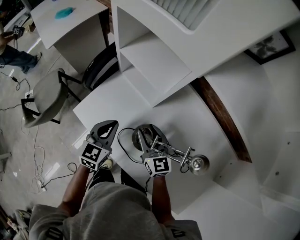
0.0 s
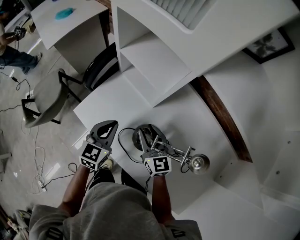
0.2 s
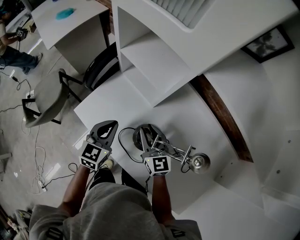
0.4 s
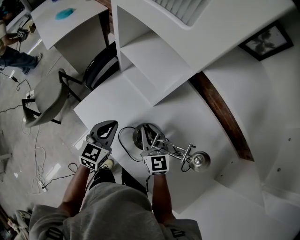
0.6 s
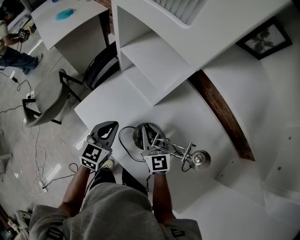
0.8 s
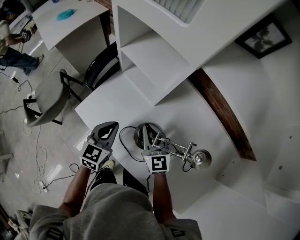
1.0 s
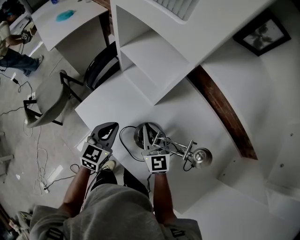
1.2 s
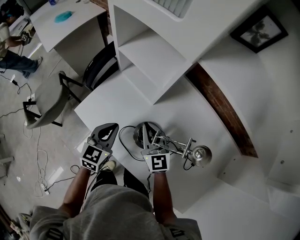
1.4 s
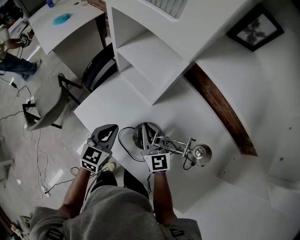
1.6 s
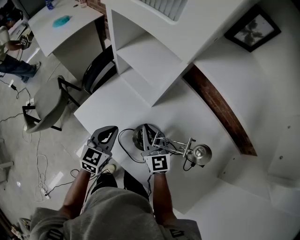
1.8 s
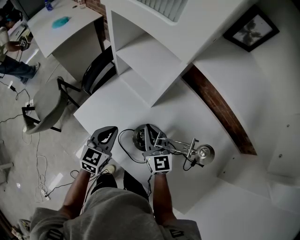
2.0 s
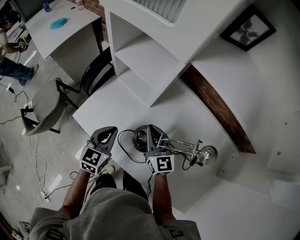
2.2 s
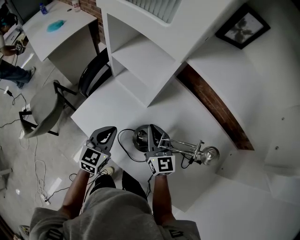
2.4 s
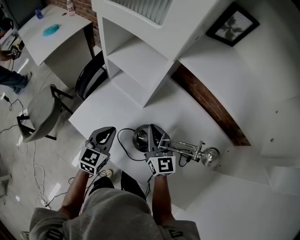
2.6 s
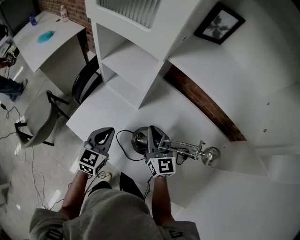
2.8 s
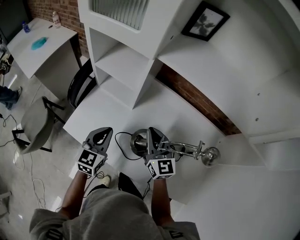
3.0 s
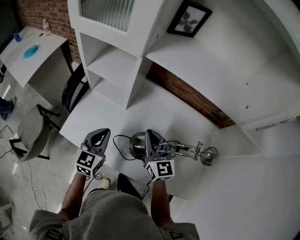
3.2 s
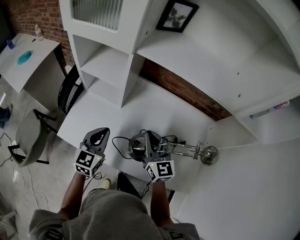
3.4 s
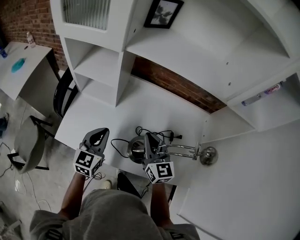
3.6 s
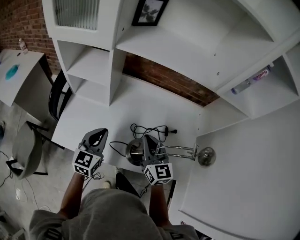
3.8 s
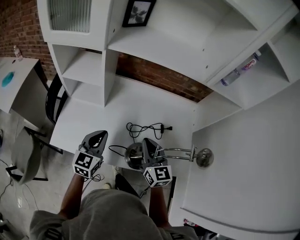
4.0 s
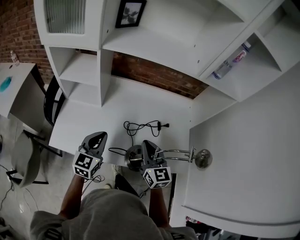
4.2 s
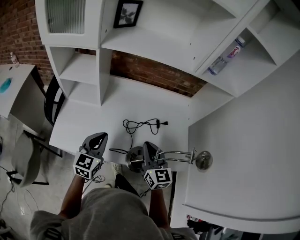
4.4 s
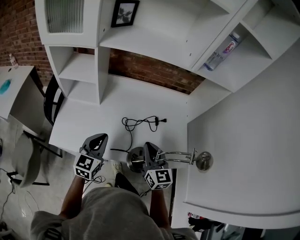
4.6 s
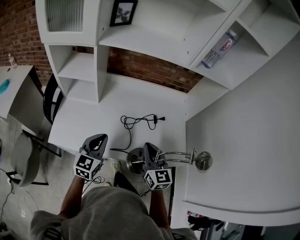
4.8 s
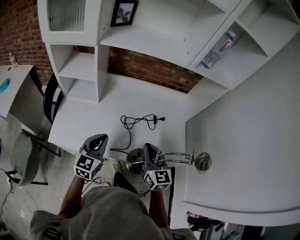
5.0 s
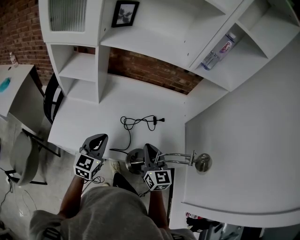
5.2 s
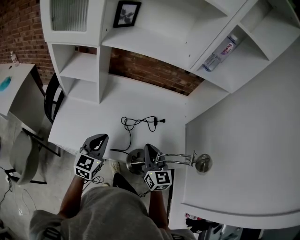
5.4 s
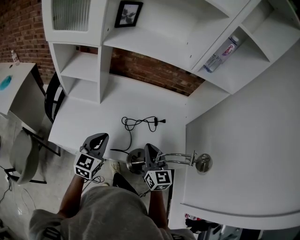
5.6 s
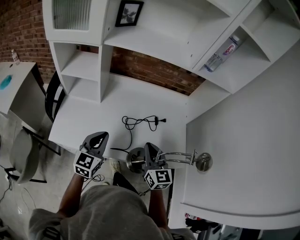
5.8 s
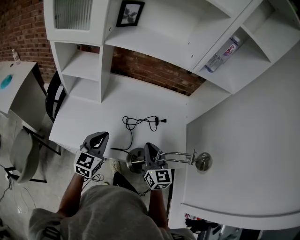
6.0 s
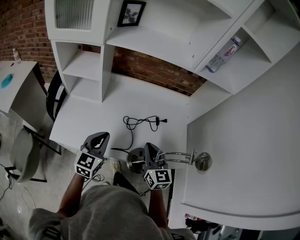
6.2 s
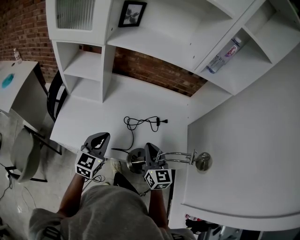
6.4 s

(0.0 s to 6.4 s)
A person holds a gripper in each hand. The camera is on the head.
0.0 s - 1.6 s: The right gripper closes up.
1.6 s - 3.2 s: The left gripper shifts approximately 5 cm upward, while the right gripper is displaced to the right, upward and backward by some 15 cm, and changes its angle by some 20 degrees.
3.2 s - 4.8 s: The left gripper goes some 15 cm backward and to the right, and changes its angle by approximately 20 degrees; the right gripper moves backward and to the right, roughly 25 cm, and changes its angle by roughly 20 degrees.
4.8 s - 6.4 s: Both grippers stay put.

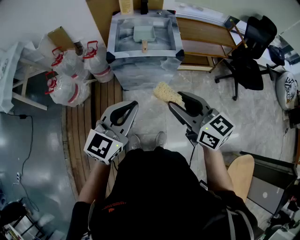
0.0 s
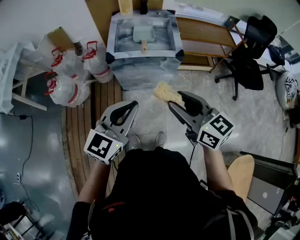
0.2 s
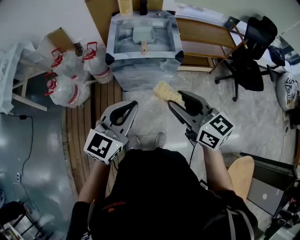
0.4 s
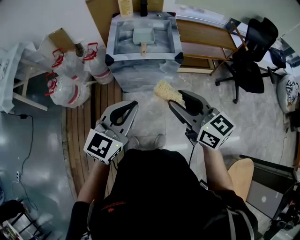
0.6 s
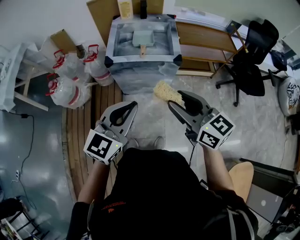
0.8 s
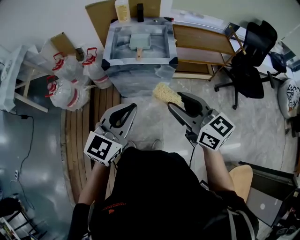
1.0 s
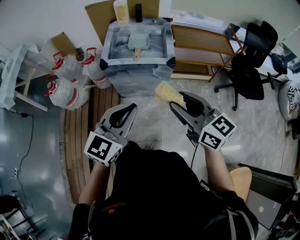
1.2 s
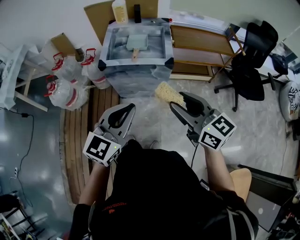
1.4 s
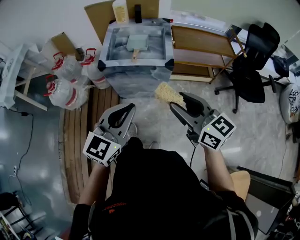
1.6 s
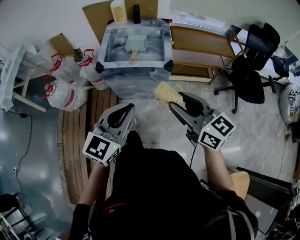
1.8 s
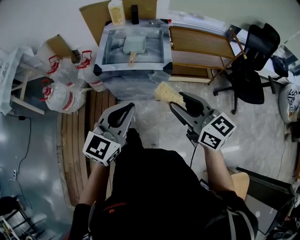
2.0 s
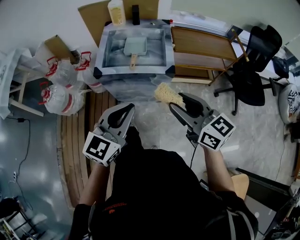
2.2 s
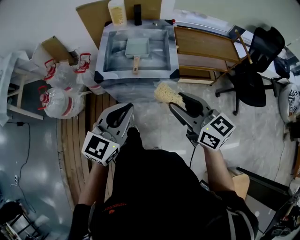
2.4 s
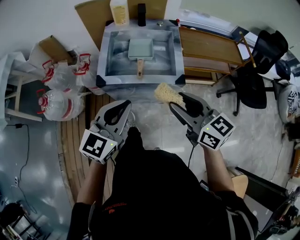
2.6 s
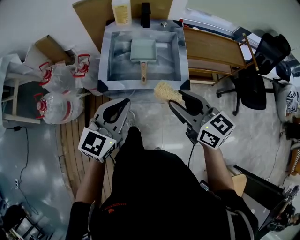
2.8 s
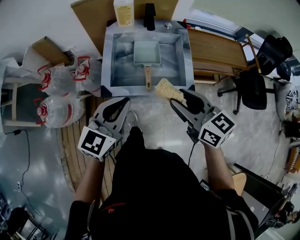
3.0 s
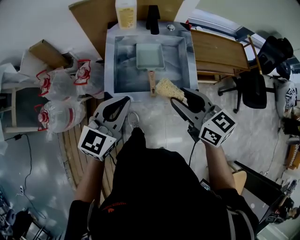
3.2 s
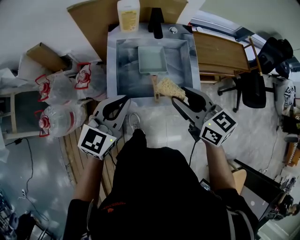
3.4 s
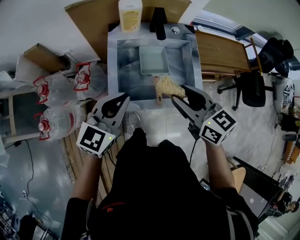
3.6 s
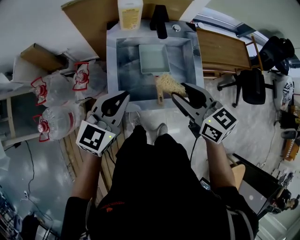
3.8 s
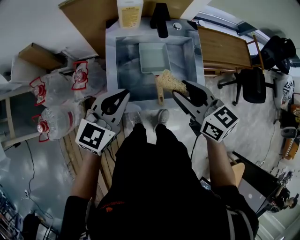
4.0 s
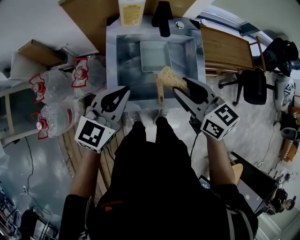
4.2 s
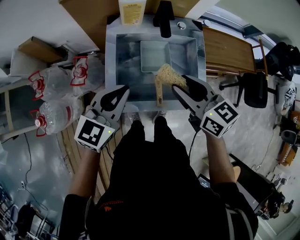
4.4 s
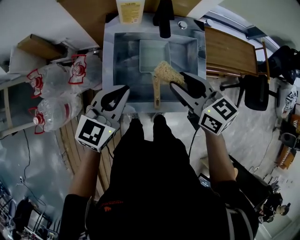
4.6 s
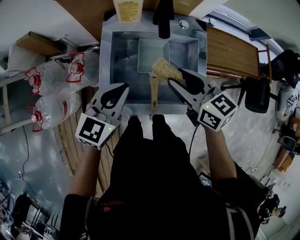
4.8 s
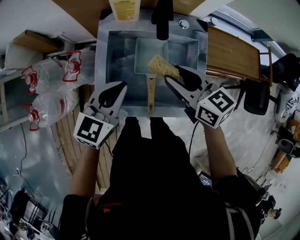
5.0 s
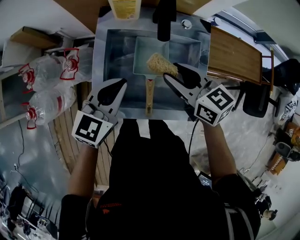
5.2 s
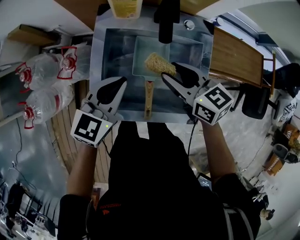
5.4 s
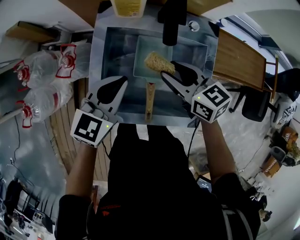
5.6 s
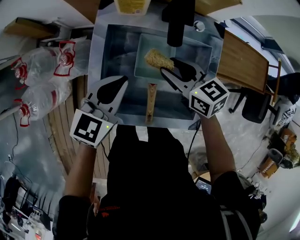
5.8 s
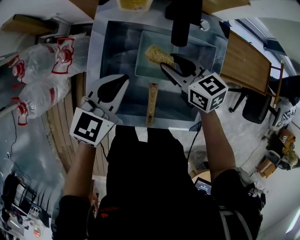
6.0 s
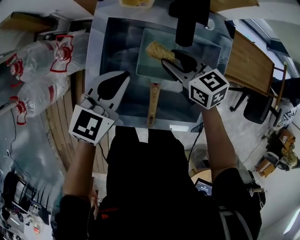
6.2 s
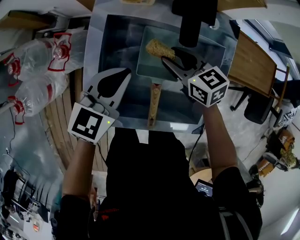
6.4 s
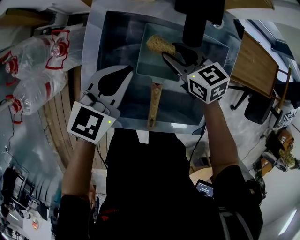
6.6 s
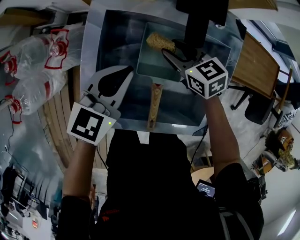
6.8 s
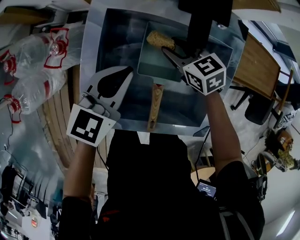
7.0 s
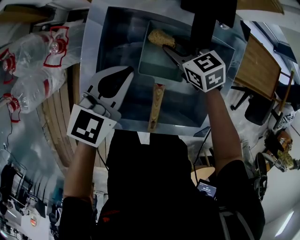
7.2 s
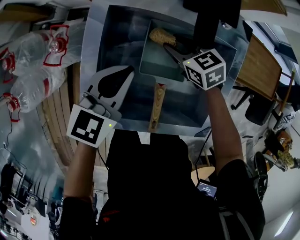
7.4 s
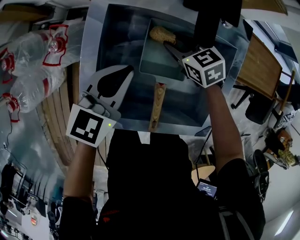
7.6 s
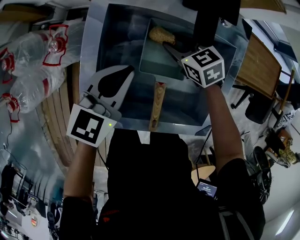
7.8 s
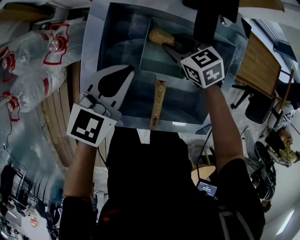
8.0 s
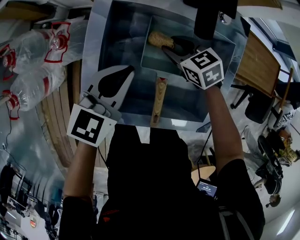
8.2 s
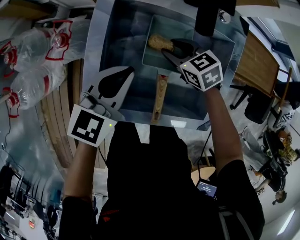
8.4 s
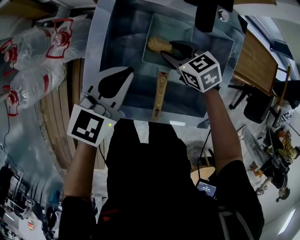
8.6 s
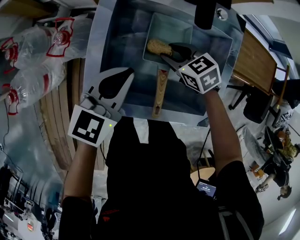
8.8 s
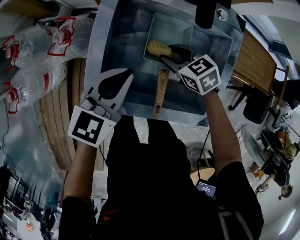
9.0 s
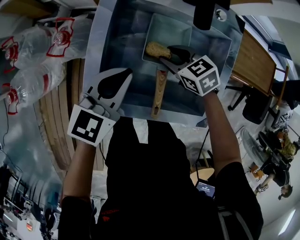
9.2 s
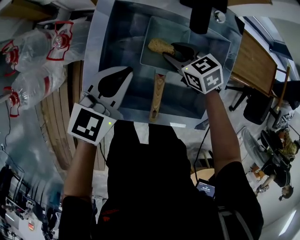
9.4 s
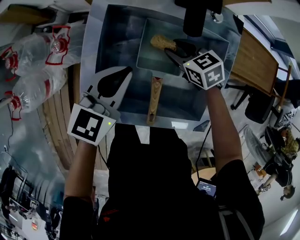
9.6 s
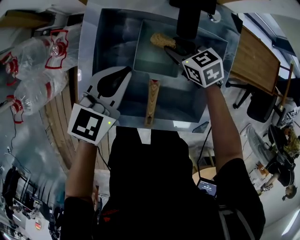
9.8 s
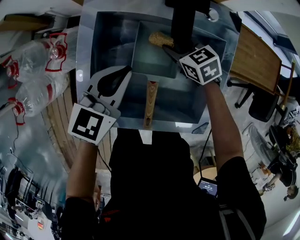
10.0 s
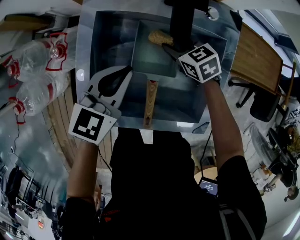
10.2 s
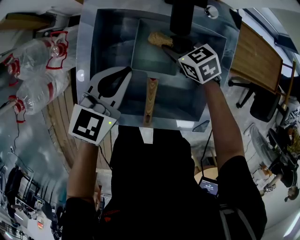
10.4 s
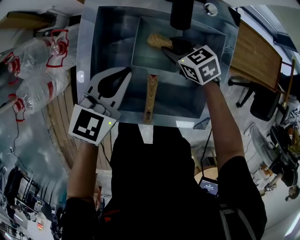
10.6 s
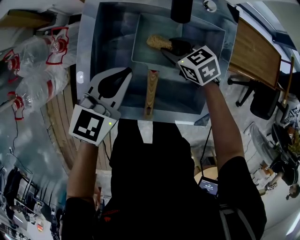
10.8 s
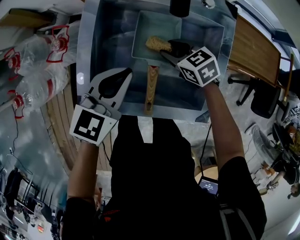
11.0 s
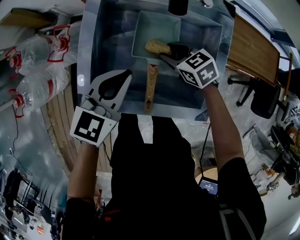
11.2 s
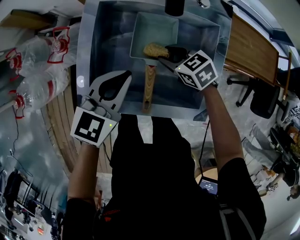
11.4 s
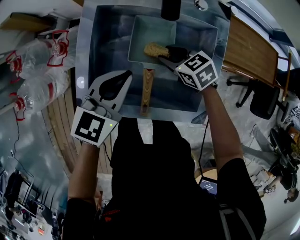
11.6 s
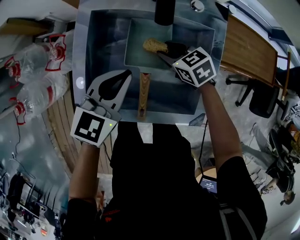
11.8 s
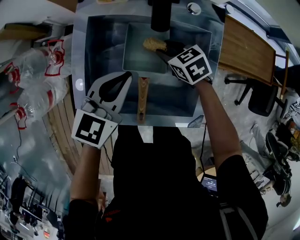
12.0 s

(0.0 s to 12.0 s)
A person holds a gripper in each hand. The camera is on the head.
0.0 s - 1.6 s: Both grippers travel together to the right, roughly 10 cm.
1.6 s - 3.0 s: The grippers both shift forward by about 30 cm.
3.0 s - 4.4 s: The grippers both shift forward by approximately 15 cm.
4.4 s - 6.0 s: The right gripper moves downward and forward, some 25 cm. The left gripper shifts about 15 cm downward and forward.
6.0 s - 7.6 s: The right gripper goes about 10 cm downward. Meanwhile the left gripper travels downward by approximately 5 cm.
7.6 s - 9.0 s: Both grippers move backward, some 5 cm.
9.0 s - 10.4 s: The right gripper heads to the right and forward, covering about 10 cm, while the left gripper shifts approximately 5 cm to the right.
10.4 s - 12.0 s: The right gripper goes backward and returns, some 10 cm each way.

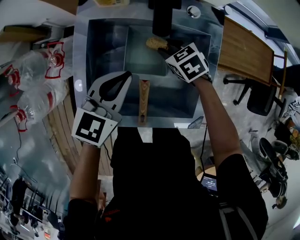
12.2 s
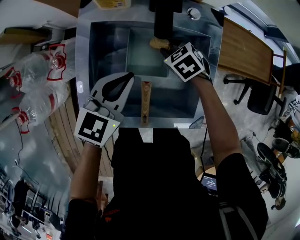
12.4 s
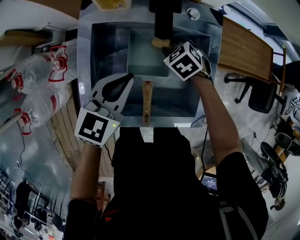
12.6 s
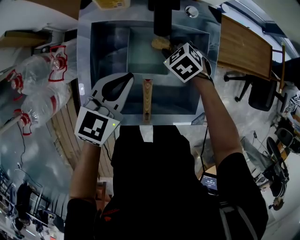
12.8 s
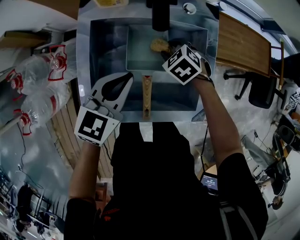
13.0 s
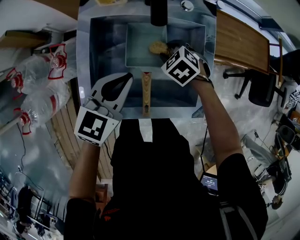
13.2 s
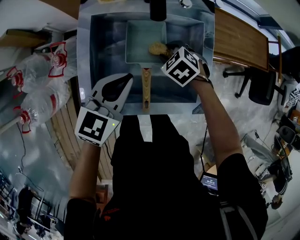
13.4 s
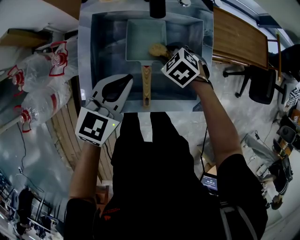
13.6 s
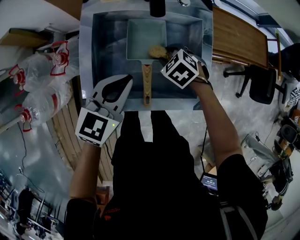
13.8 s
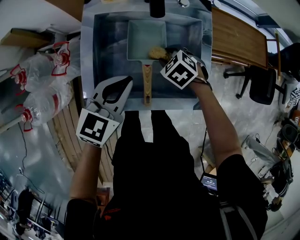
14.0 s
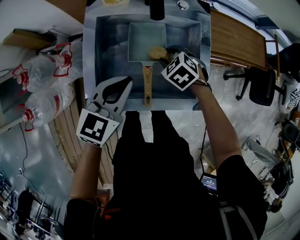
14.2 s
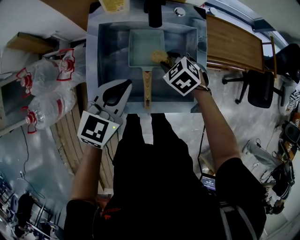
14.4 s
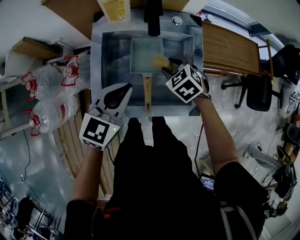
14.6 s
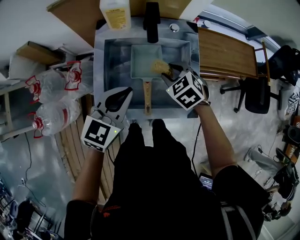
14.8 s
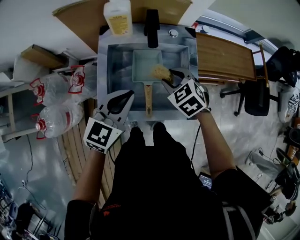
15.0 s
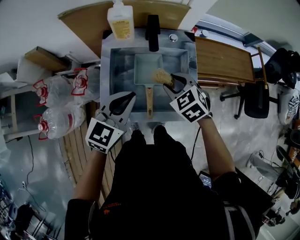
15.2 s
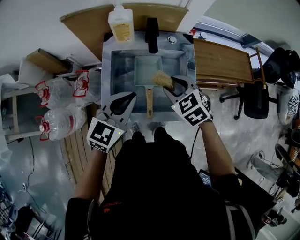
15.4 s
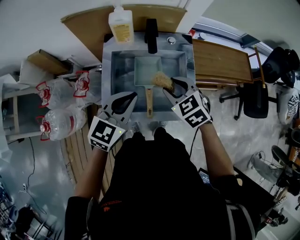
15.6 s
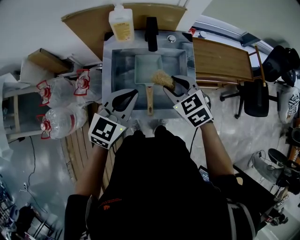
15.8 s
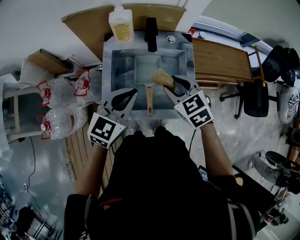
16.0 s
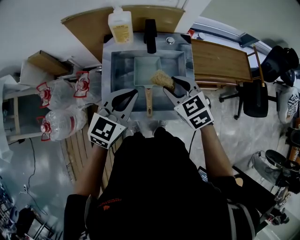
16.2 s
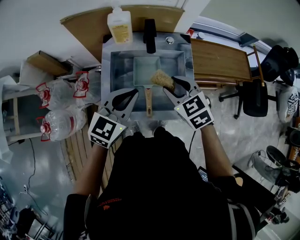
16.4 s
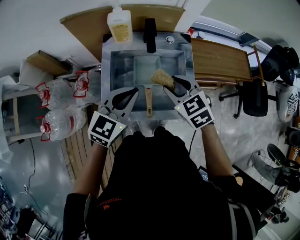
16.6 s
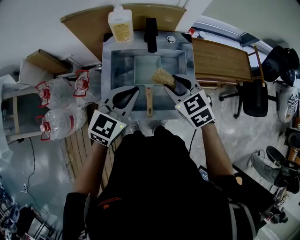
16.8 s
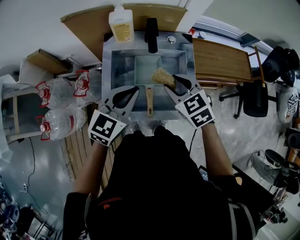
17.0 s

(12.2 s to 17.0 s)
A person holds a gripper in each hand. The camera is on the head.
12.2 s - 13.8 s: Both grippers move backward, about 10 cm.
13.8 s - 15.4 s: The right gripper shifts approximately 20 cm upward, and swivels about 20 degrees; the left gripper heads upward, covering about 10 cm.
15.4 s - 17.0 s: The grippers move only a little.
